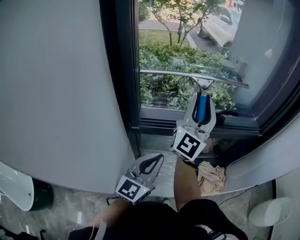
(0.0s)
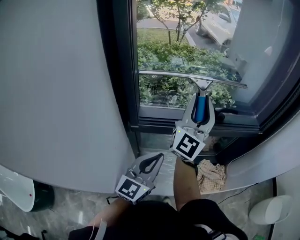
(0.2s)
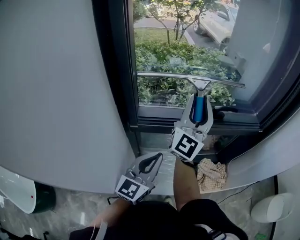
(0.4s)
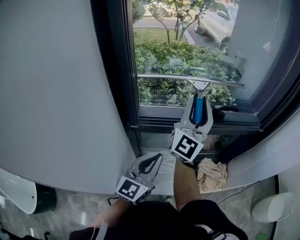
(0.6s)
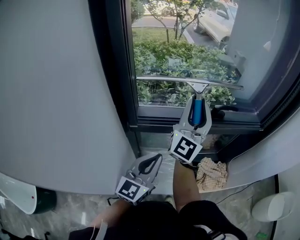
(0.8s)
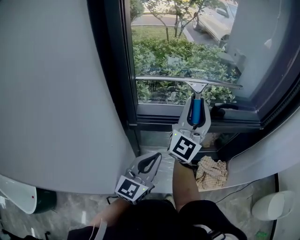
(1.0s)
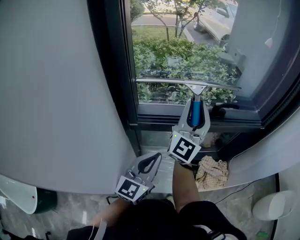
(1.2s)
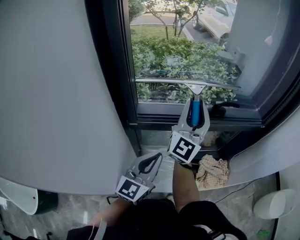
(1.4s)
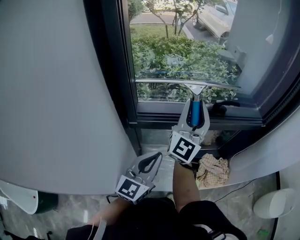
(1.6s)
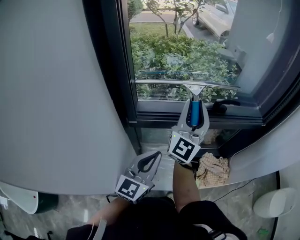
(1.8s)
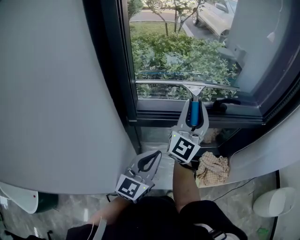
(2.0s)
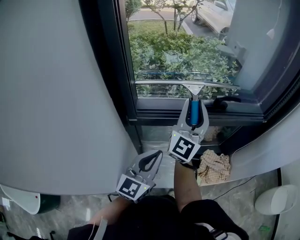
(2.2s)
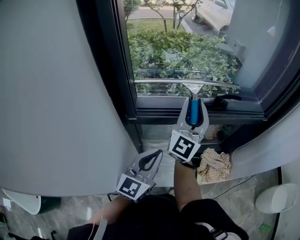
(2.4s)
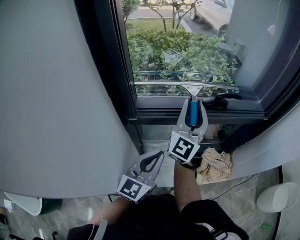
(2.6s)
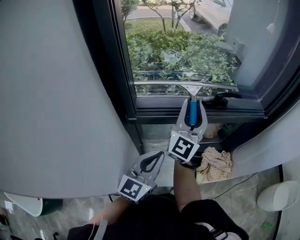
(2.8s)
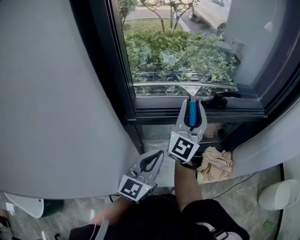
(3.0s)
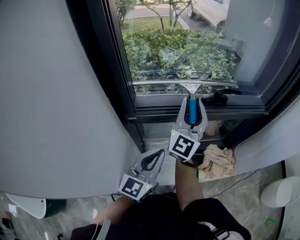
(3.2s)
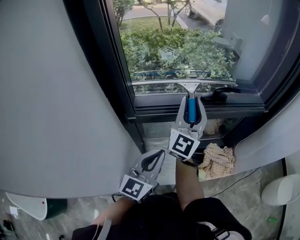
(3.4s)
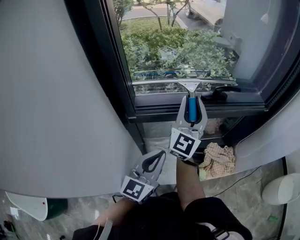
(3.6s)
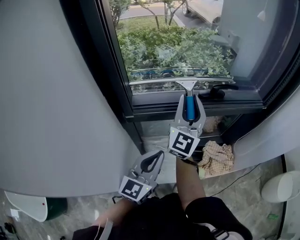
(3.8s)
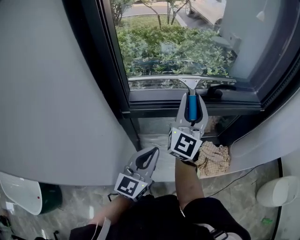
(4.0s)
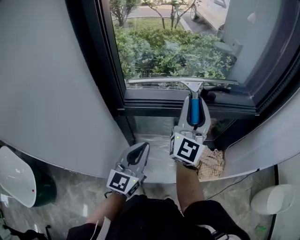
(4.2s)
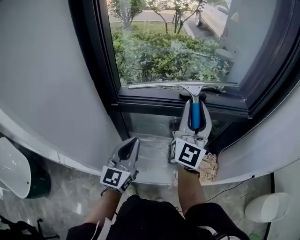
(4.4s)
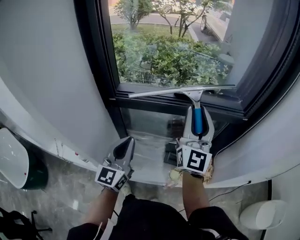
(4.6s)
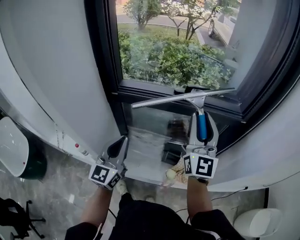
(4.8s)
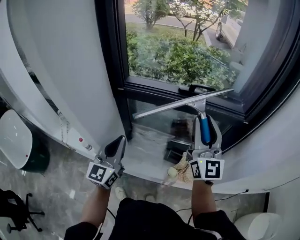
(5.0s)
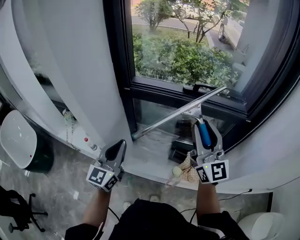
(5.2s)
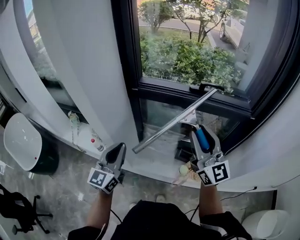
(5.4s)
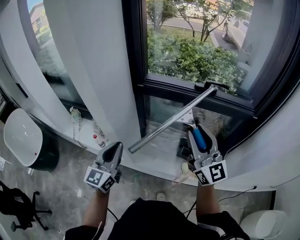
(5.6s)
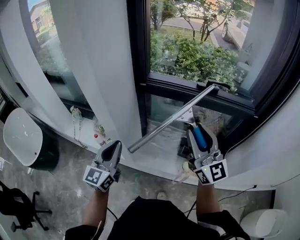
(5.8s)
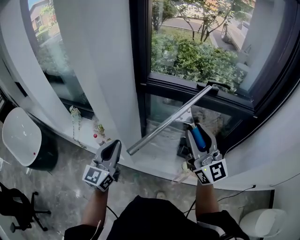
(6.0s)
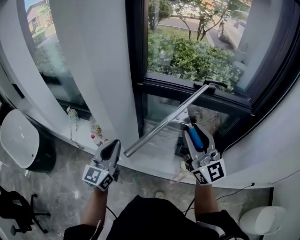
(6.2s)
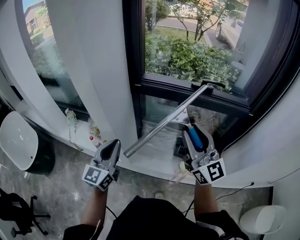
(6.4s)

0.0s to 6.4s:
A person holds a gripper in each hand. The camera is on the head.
0.0s to 1.6s: The right gripper shifts approximately 5 cm downward.
1.6s to 3.2s: The grippers make only small movements.
3.2s to 4.8s: The right gripper ends up about 20 cm from where it was, and rotates about 30 degrees; the left gripper ends up about 10 cm from where it was, and changes its angle by some 30 degrees.
4.8s to 6.4s: The two grippers go about 15 cm to the left and backward. The right gripper turns by about 30 degrees.

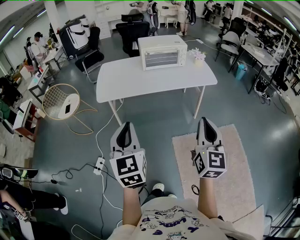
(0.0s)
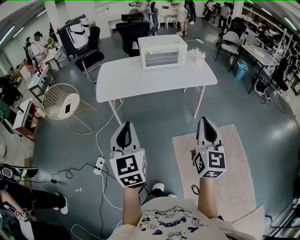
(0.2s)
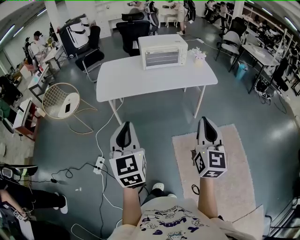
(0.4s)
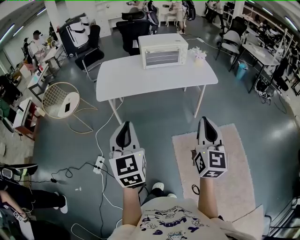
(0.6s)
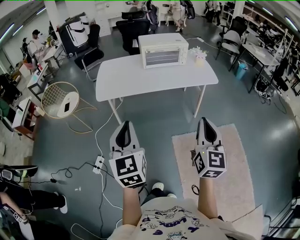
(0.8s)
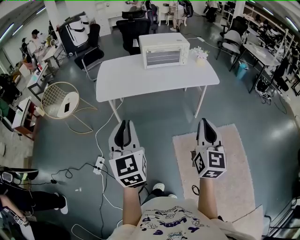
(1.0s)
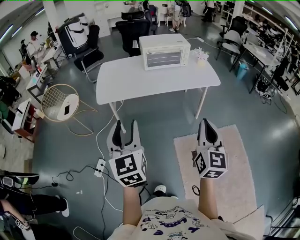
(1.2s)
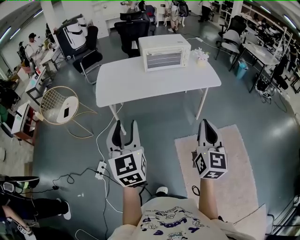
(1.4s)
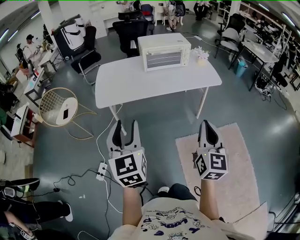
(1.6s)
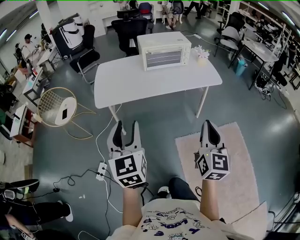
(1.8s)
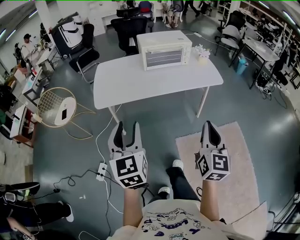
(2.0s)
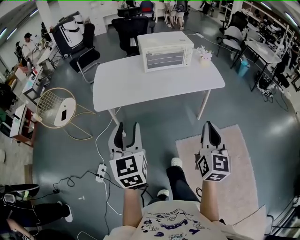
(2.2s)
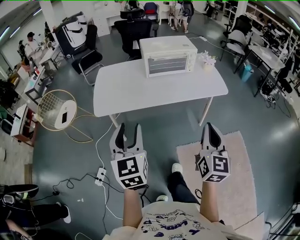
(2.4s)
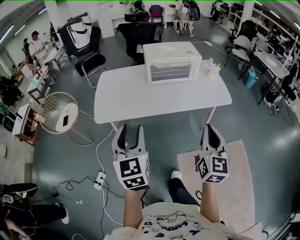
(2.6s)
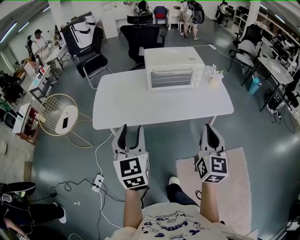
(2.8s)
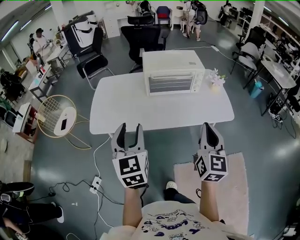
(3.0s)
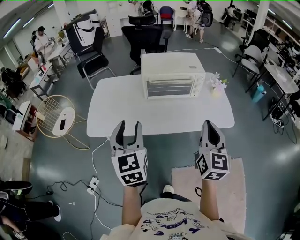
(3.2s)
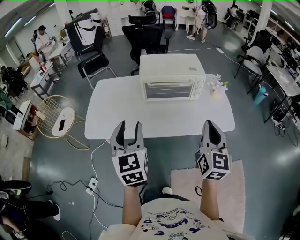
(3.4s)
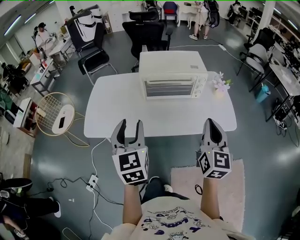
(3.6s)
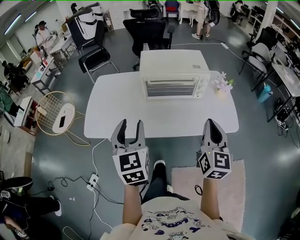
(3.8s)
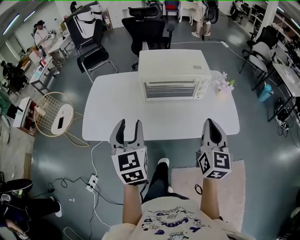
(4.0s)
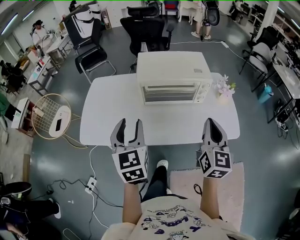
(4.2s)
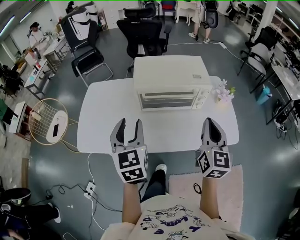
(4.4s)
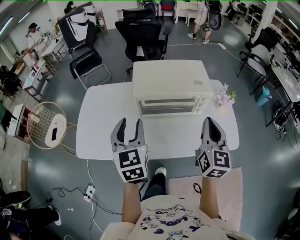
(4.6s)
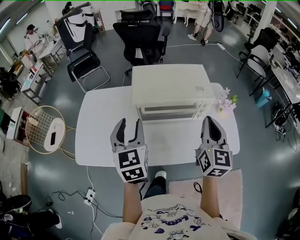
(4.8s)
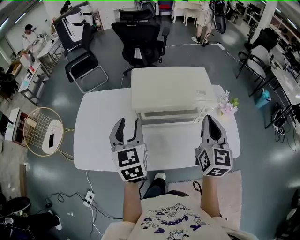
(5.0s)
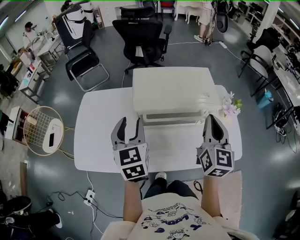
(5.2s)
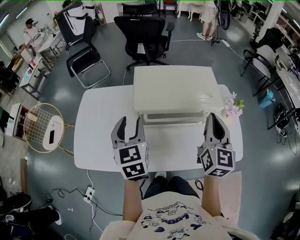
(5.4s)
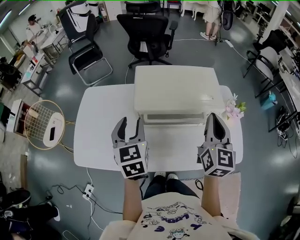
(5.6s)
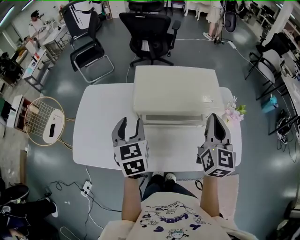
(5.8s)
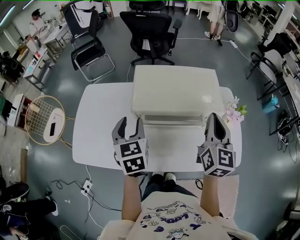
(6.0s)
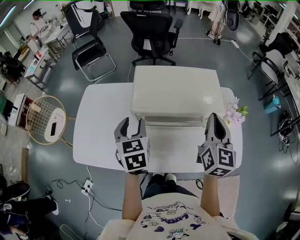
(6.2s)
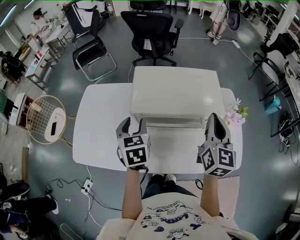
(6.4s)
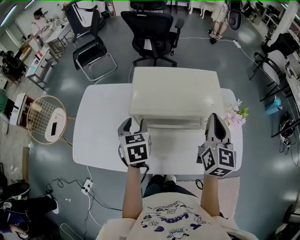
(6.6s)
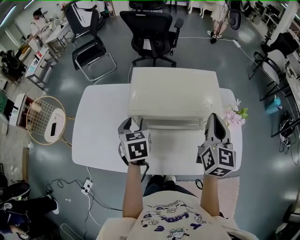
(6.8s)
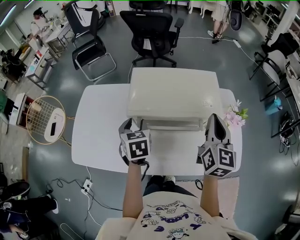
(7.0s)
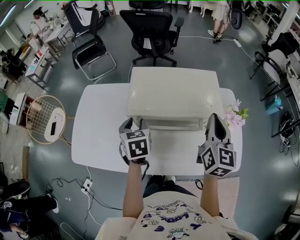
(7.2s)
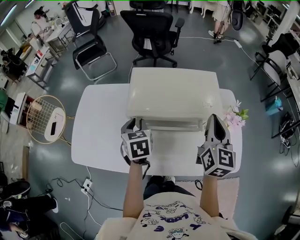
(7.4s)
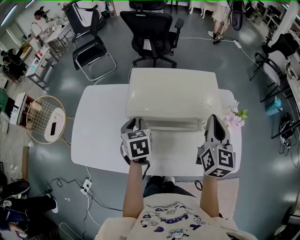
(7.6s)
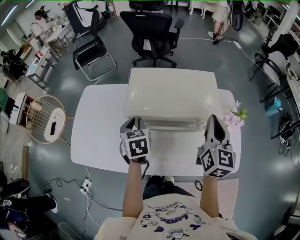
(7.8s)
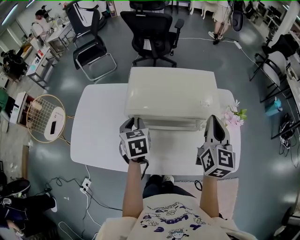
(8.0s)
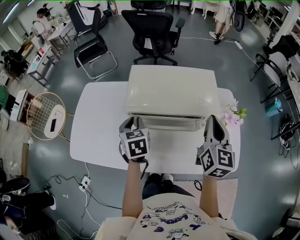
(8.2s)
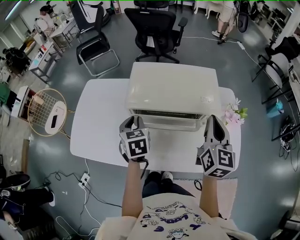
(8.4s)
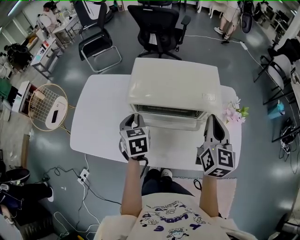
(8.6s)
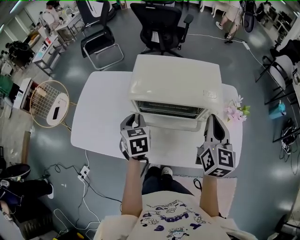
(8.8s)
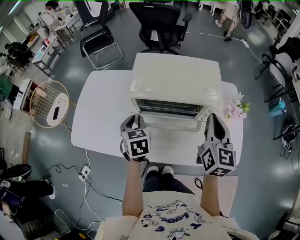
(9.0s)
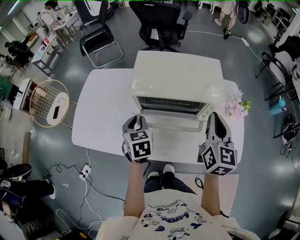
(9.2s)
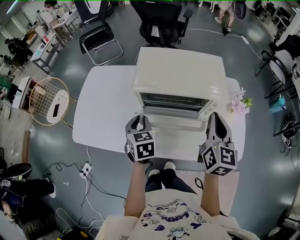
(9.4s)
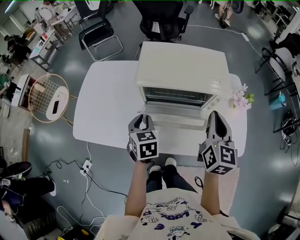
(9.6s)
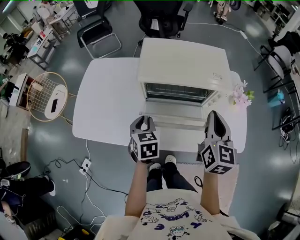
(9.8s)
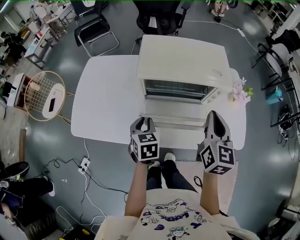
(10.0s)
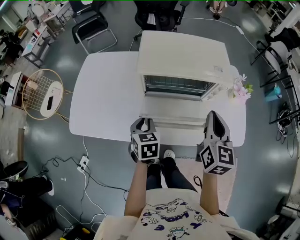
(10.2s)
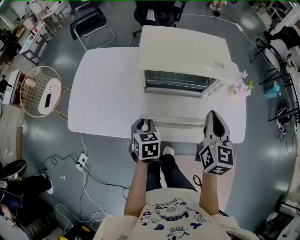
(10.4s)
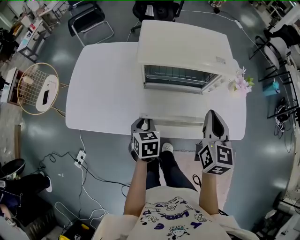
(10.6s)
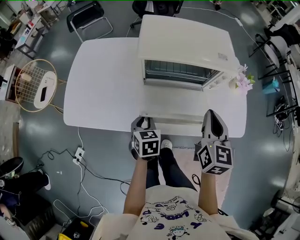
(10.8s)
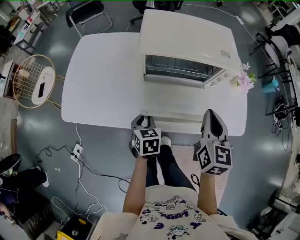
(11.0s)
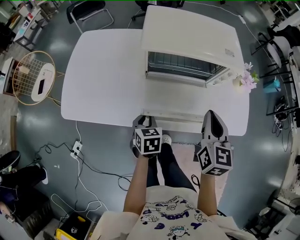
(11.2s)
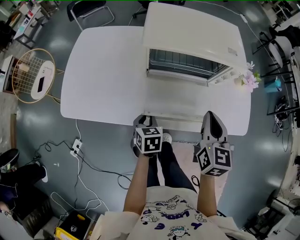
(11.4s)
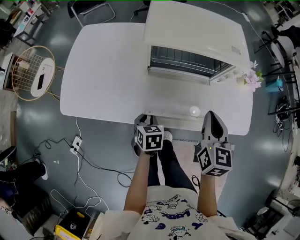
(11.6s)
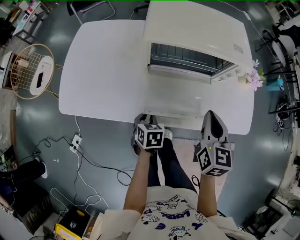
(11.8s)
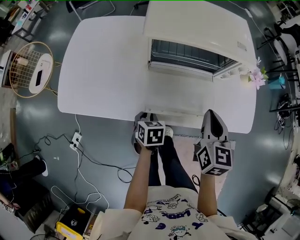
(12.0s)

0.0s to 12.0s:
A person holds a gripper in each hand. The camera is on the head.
0.0s to 1.6s: Both grippers move forward, approximately 10 cm. The left gripper opens.
1.6s to 3.0s: Both grippers move forward, some 30 cm.
3.0s to 4.4s: Both grippers travel together forward, roughly 25 cm.
4.4s to 6.0s: The grippers both shift forward by some 20 cm.
6.0s to 7.6s: The left gripper heads downward, covering about 10 cm, and closes its fingers.
7.6s to 9.0s: The two grippers go about 5 cm backward.
9.0s to 10.4s: The left gripper travels backward and downward by roughly 15 cm; the right gripper goes some 10 cm backward and to the left.
10.4s to 12.0s: Both grippers travel together downward, about 10 cm.

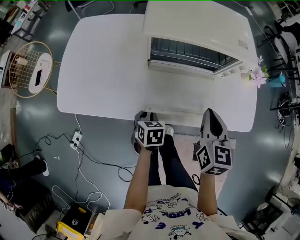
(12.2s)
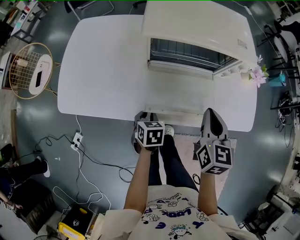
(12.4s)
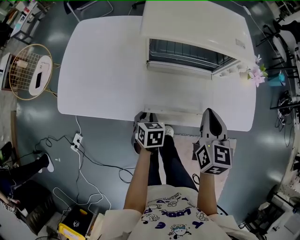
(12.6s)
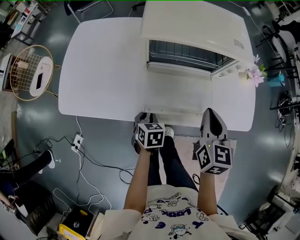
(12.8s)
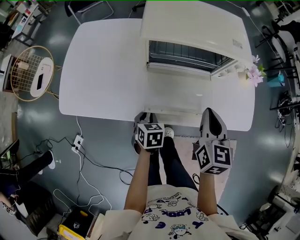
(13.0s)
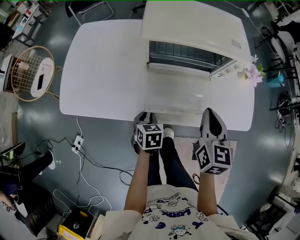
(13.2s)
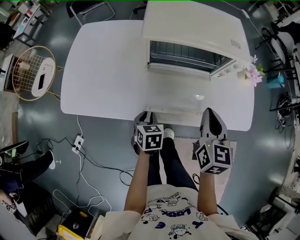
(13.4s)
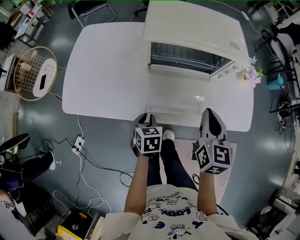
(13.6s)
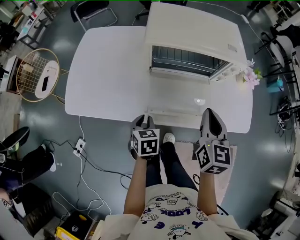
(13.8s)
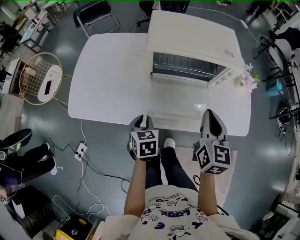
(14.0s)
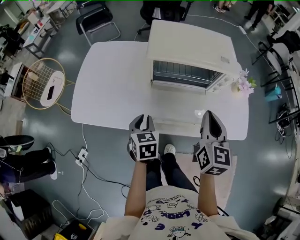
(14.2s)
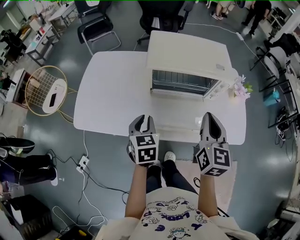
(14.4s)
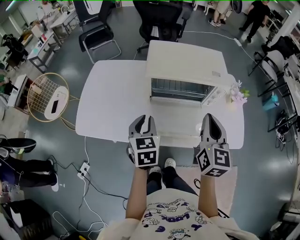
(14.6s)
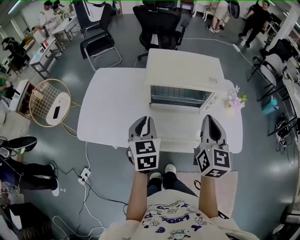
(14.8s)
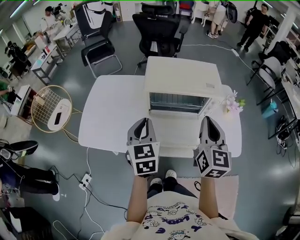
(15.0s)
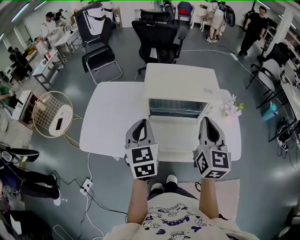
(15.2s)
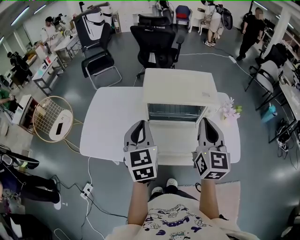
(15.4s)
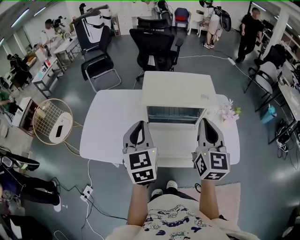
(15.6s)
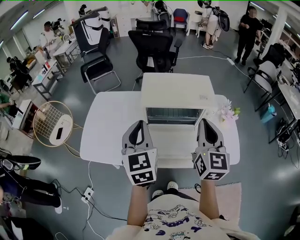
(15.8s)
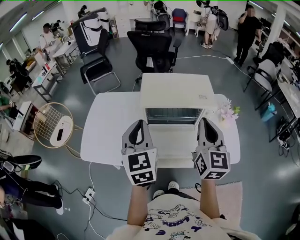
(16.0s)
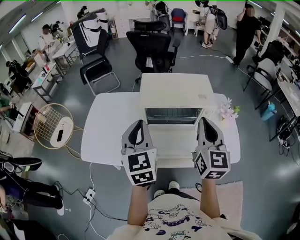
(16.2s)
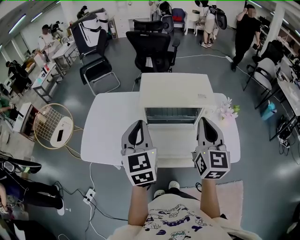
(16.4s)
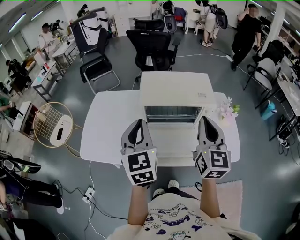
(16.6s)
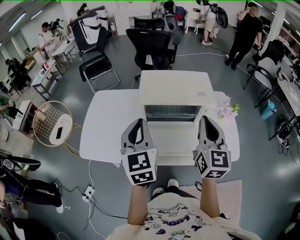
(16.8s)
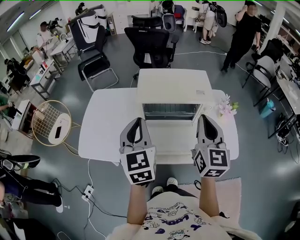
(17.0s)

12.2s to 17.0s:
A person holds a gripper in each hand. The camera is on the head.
12.2s to 13.8s: The two grippers go roughly 5 cm upward.
13.8s to 15.4s: The left gripper heads upward, covering roughly 35 cm, and points its fingers about 40 degrees further upward, while the right gripper travels upward by approximately 20 cm.
15.4s to 17.0s: The grippers stay close to where they were, moving slightly.
